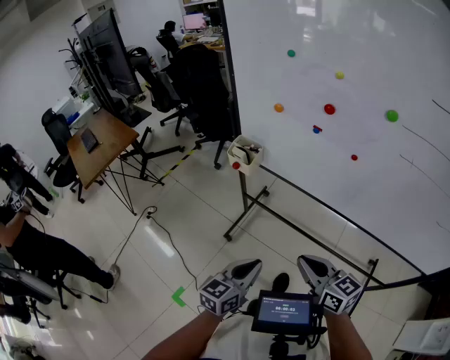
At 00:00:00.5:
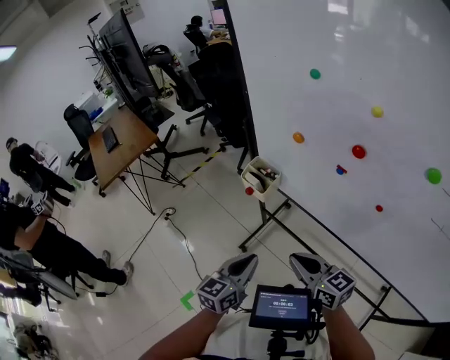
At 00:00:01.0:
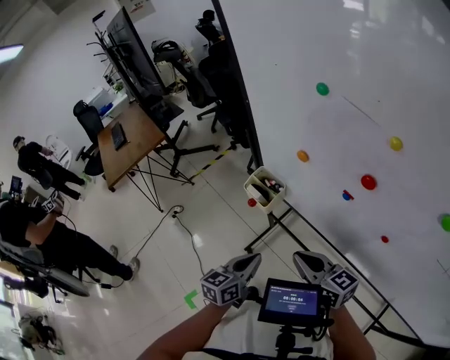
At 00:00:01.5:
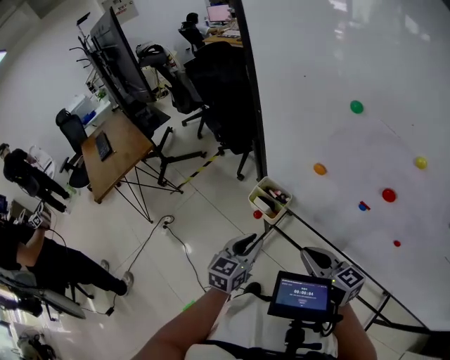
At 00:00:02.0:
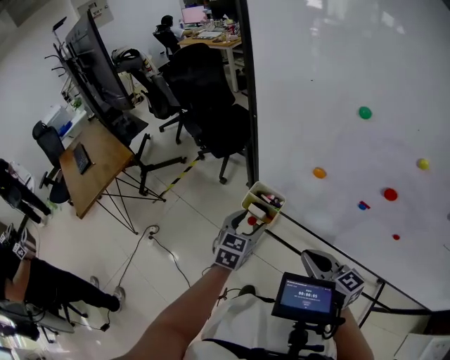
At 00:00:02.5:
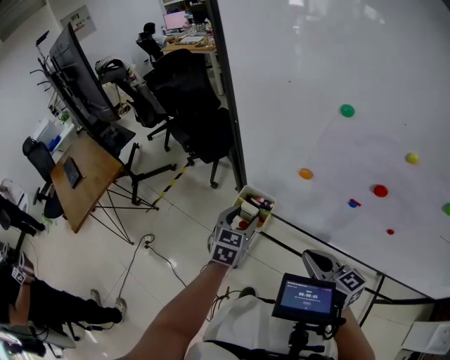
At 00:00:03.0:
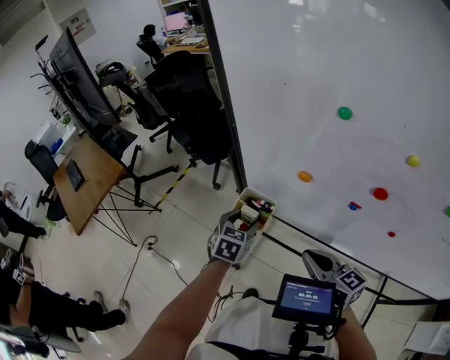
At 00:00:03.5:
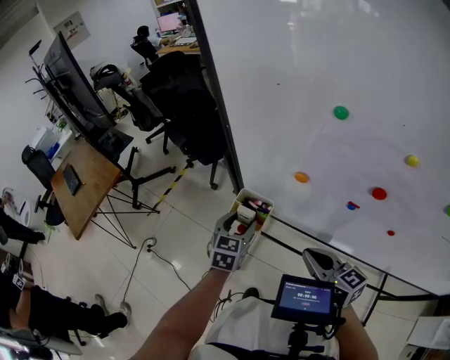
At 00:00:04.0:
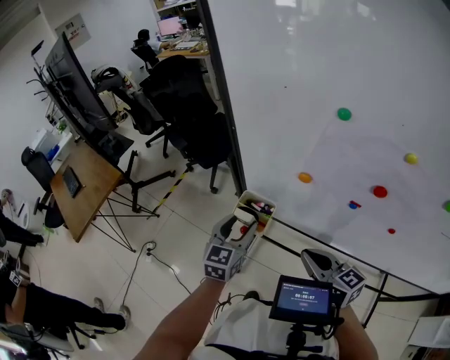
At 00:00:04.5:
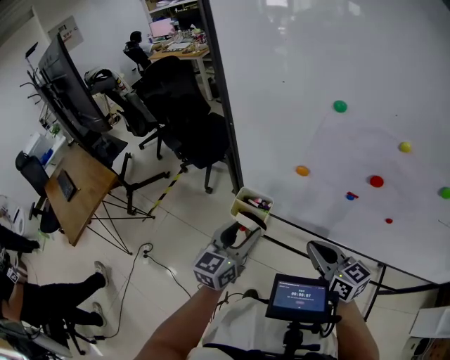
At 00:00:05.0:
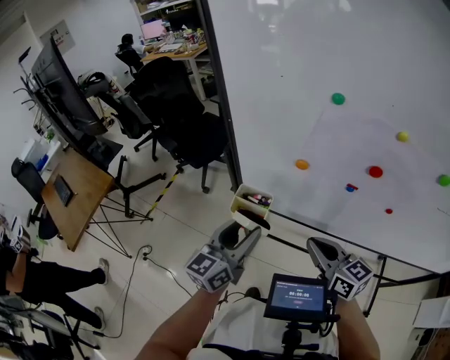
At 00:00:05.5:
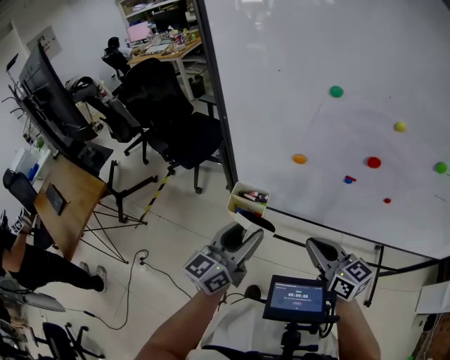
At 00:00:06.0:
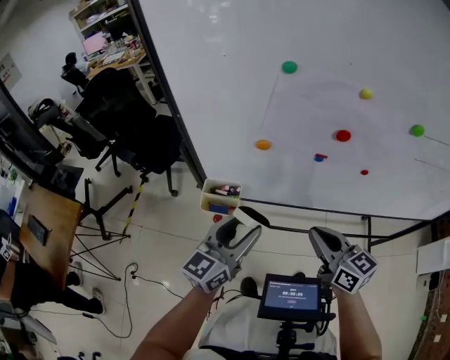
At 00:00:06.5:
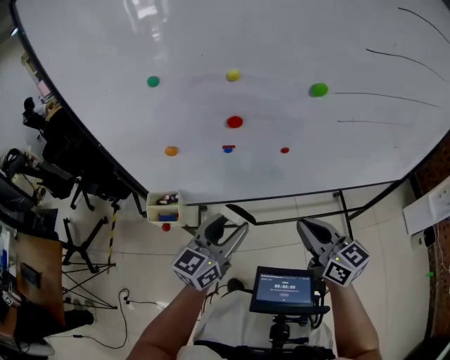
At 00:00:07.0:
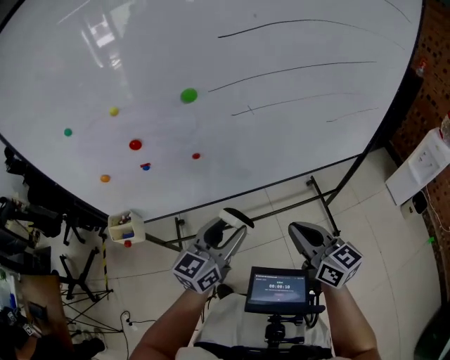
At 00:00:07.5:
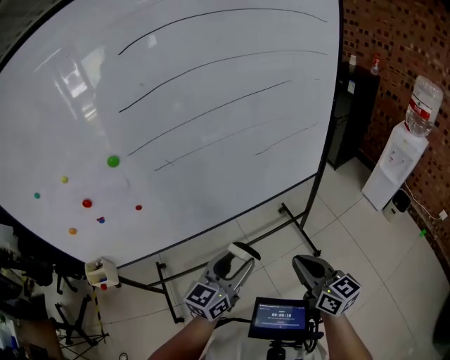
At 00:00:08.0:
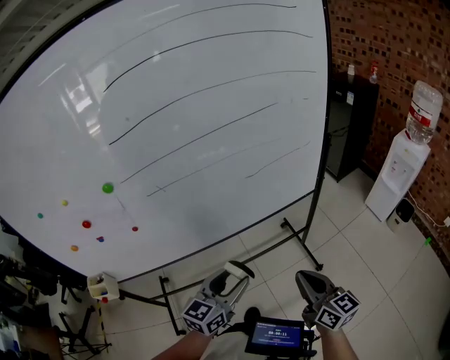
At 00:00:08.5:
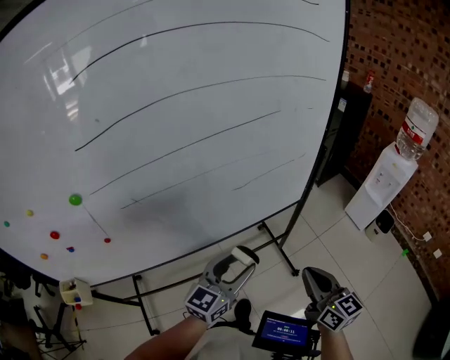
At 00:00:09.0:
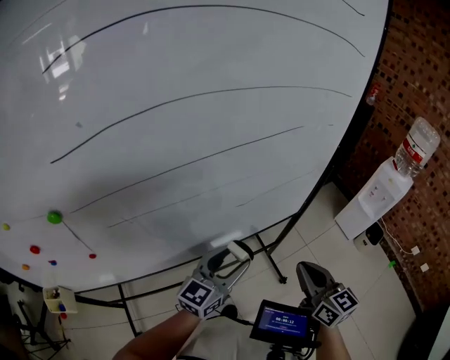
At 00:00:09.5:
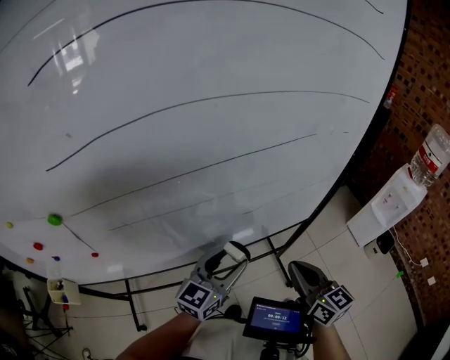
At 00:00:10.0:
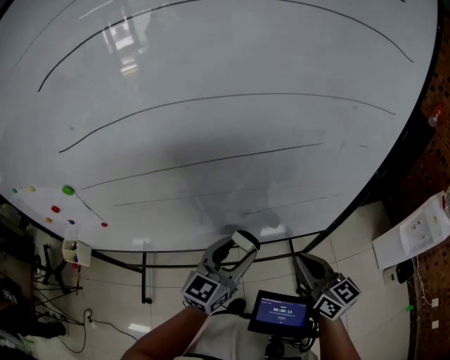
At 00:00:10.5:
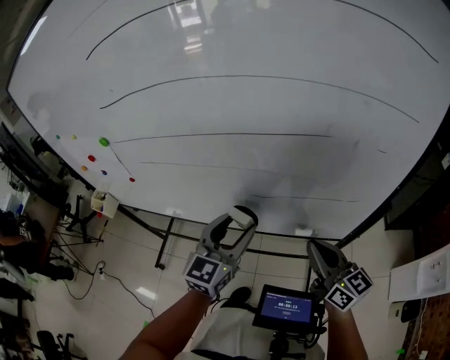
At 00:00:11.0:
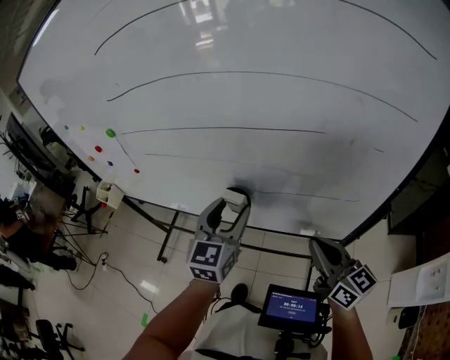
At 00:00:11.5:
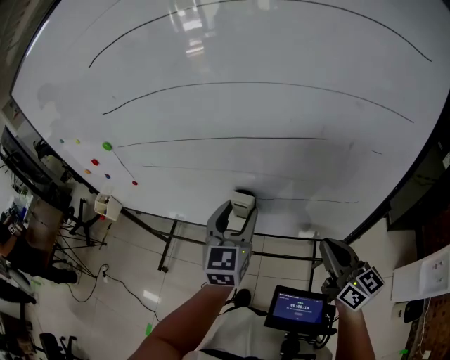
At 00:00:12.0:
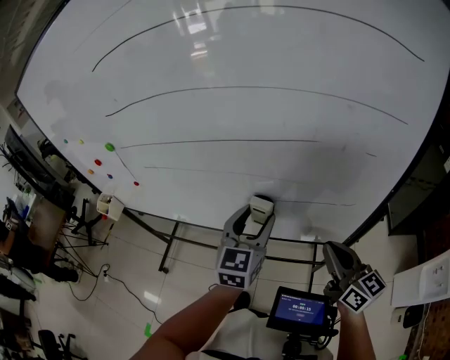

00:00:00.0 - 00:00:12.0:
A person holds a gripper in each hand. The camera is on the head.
00:00:00.0 - 00:00:02.0: The grippers both shift forward by about 40 cm. The left gripper changes its angle by about 30 degrees, and opens its fingers.
00:00:02.0 - 00:00:04.0: The left gripper goes some 5 cm upward.
00:00:04.0 - 00:00:06.0: The right gripper changes place by about 10 cm, and turns by some 20 degrees, while the left gripper changes place by some 15 cm, and swivels approximately 40 degrees.
00:00:06.0 - 00:00:08.0: Both grippers are carried approximately 60 cm. The right gripper turns by approximately 40 degrees; the left gripper turns by roughly 30 degrees.
00:00:08.0 - 00:00:10.0: Both grippers move forward, approximately 25 cm. The right gripper rotates about 20 degrees.
00:00:10.0 - 00:00:12.0: The left gripper moves approximately 5 cm, and rotates some 30 degrees. Meanwhile the right gripper shifts by some 10 cm.

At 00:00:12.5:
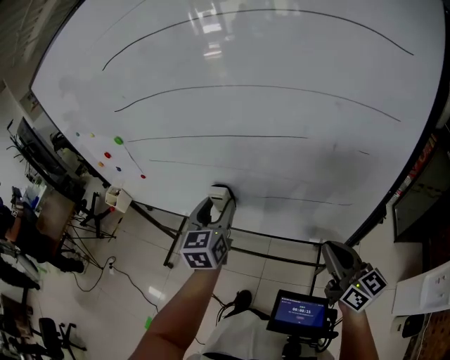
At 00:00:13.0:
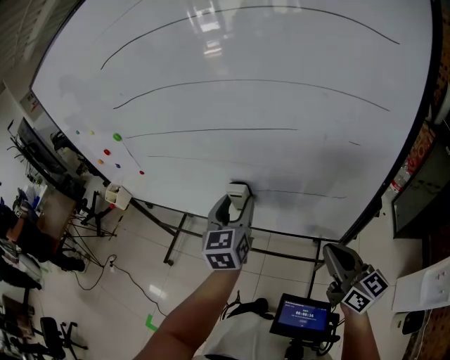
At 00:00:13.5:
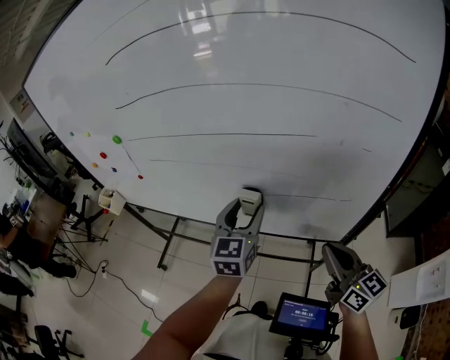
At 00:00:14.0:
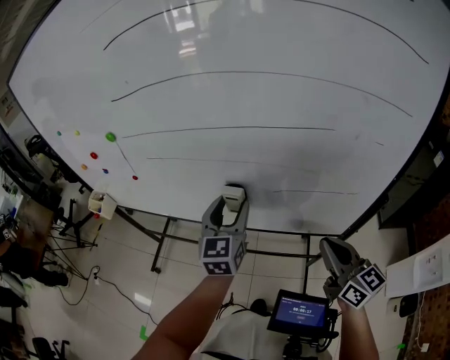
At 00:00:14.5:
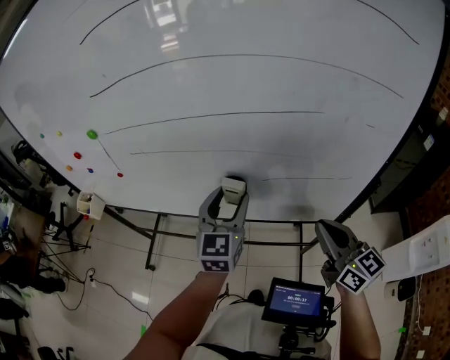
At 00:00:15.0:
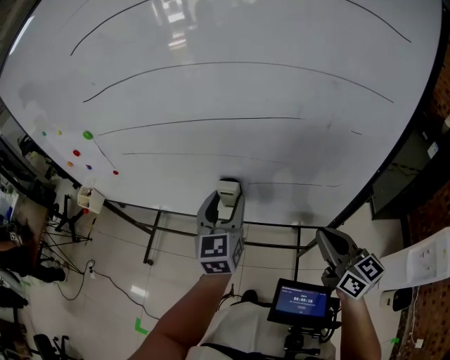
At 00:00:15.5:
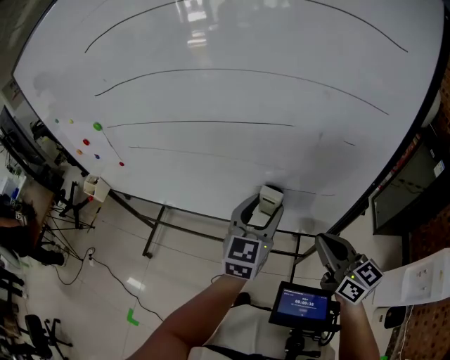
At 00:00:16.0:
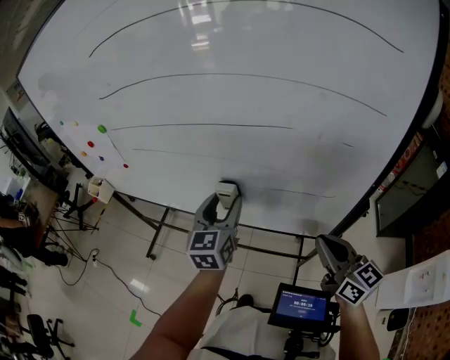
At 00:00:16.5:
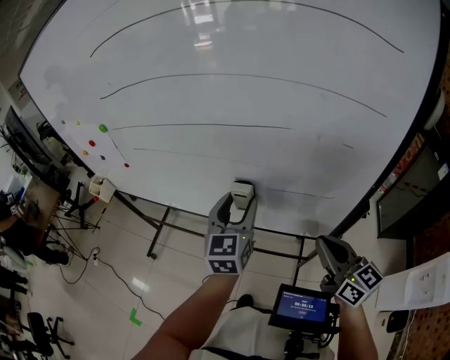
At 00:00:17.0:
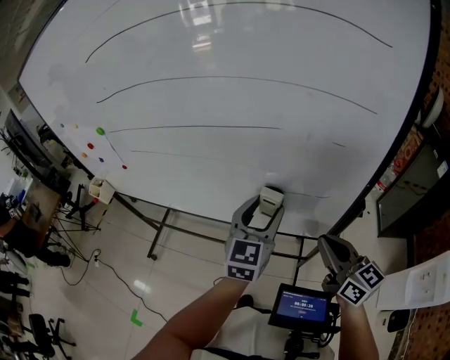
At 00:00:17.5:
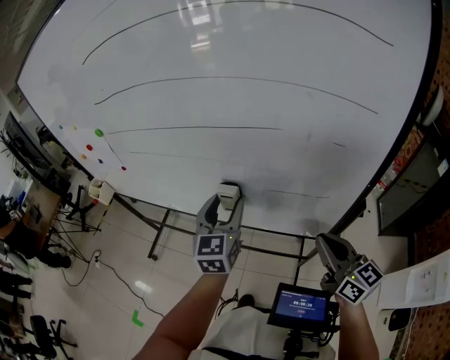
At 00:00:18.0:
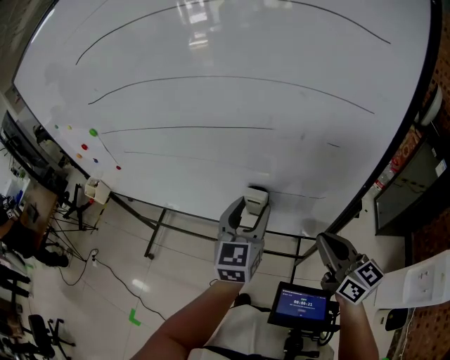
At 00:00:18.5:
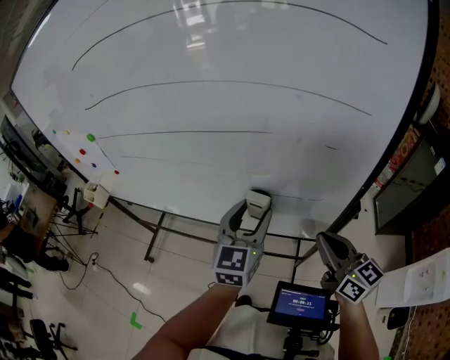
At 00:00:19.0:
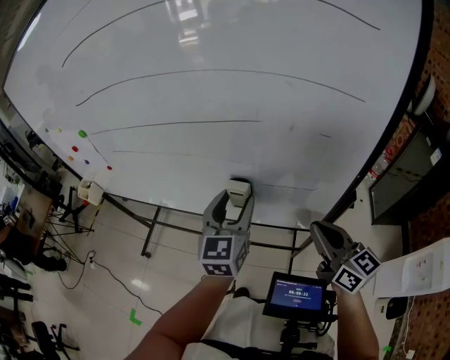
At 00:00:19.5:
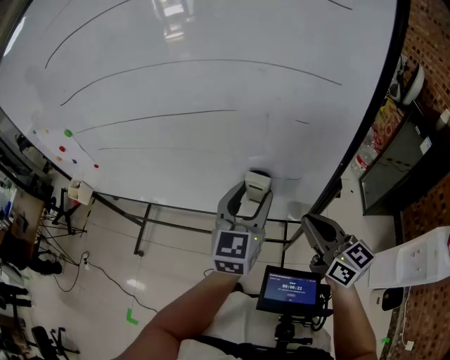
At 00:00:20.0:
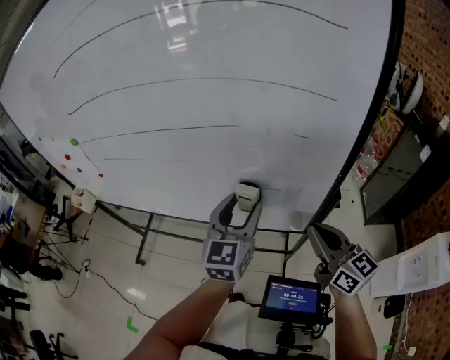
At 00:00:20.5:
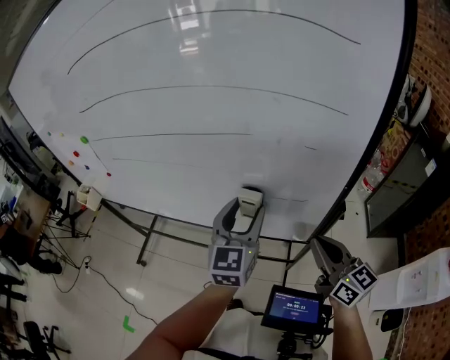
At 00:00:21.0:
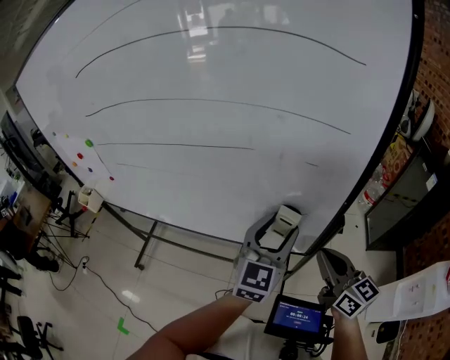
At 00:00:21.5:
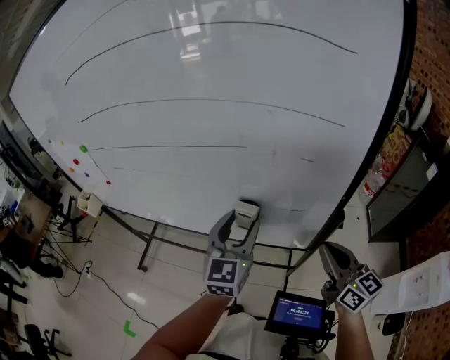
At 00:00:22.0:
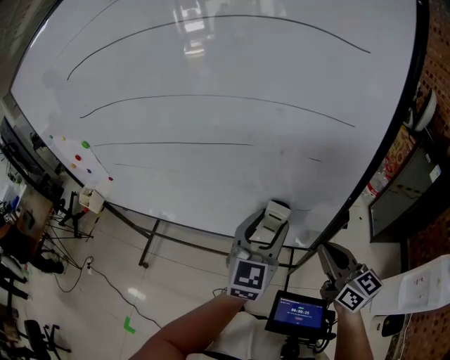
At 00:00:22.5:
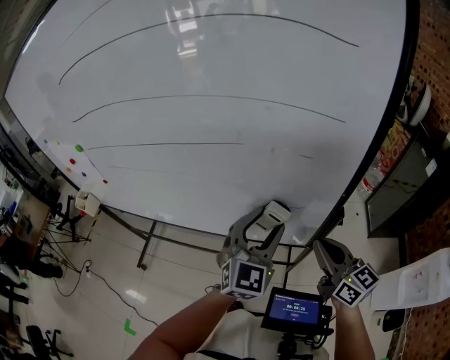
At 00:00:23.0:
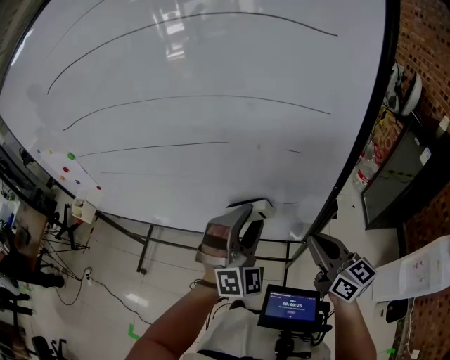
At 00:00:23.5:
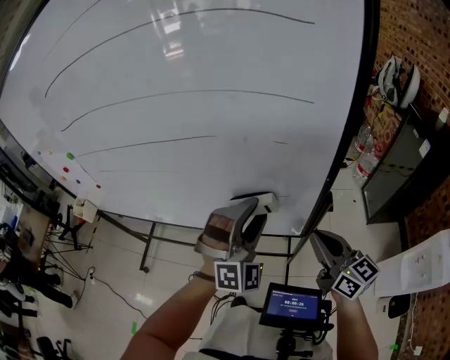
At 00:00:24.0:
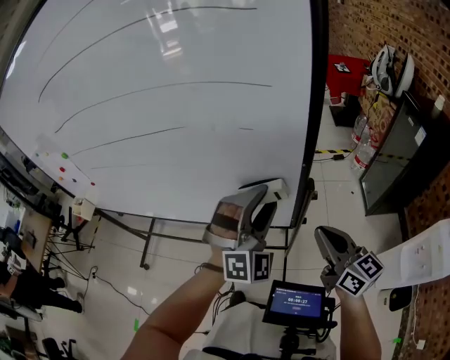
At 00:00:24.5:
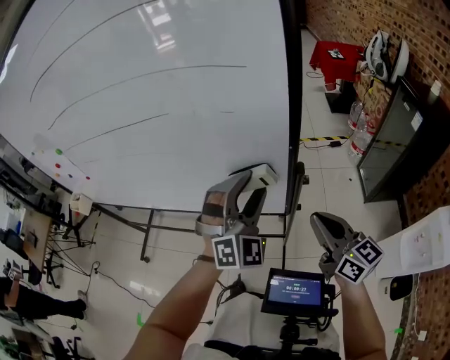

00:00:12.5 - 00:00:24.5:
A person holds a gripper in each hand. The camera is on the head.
00:00:12.5 - 00:00:14.5: The right gripper shifts some 5 cm to the left.
00:00:14.5 - 00:00:16.5: The left gripper swings left and right, some 15 cm each way, with 2 reversals, while the right gripper shifts some 10 cm to the right.
00:00:16.5 - 00:00:18.5: The left gripper goes left and right, about 10 cm each way, reversing 2 times.
00:00:20.5 - 00:00:22.5: The left gripper moves left and right over roughly 10 cm, changing direction 2 times, and swivels approximately 30 degrees.
00:00:22.5 - 00:00:24.5: The left gripper goes approximately 10 cm to the right, and rotates about 40 degrees. Meanwhile the right gripper goes about 10 cm to the right and backward.

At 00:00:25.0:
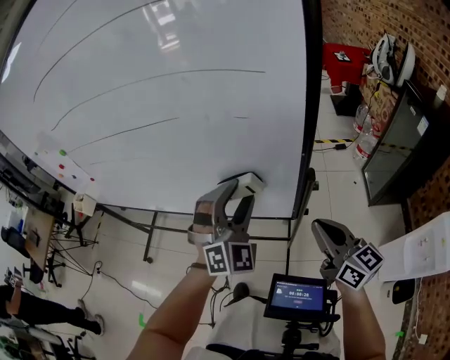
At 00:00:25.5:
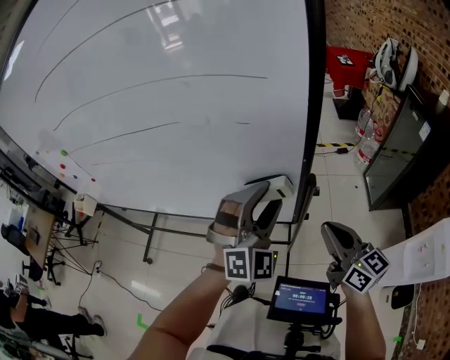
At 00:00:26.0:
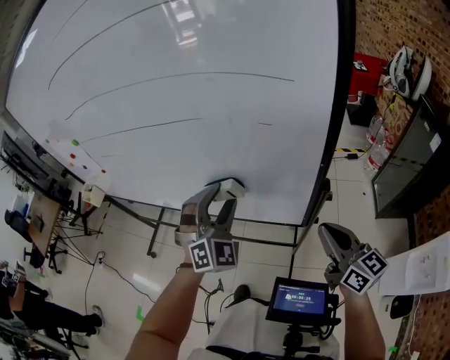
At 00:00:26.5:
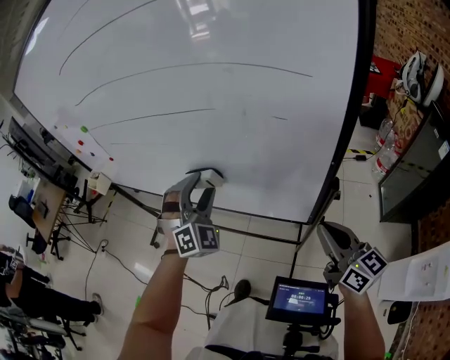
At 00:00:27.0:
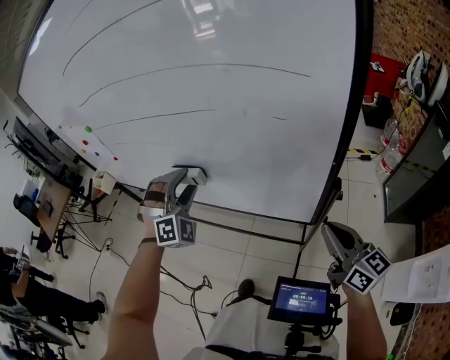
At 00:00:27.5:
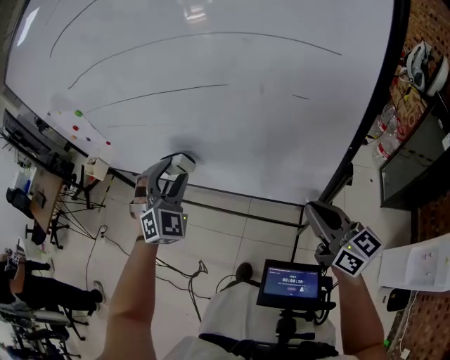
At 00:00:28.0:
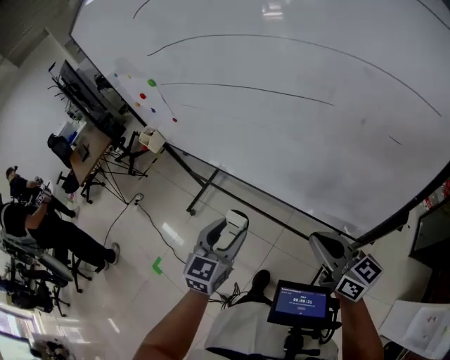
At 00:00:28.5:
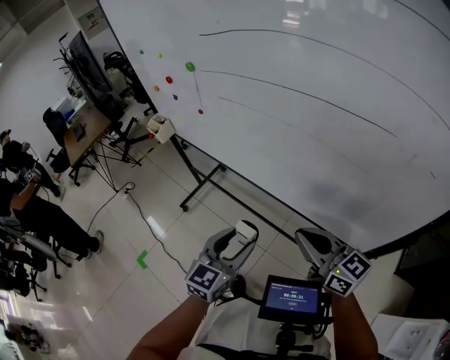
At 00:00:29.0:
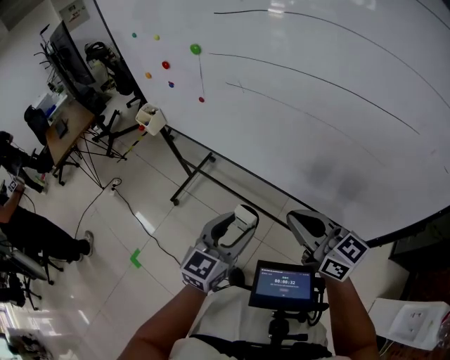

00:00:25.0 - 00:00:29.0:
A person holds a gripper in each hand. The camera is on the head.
00:00:25.0 - 00:00:27.0: The left gripper shifts roughly 25 cm to the left and forward, and changes its angle by some 30 degrees.
00:00:27.0 - 00:00:29.0: The right gripper is displaced to the left and forward by roughly 40 cm, and swivels about 30 degrees. Meanwhile the left gripper goes roughly 25 cm to the left, and rotates around the line of its fingers by approximately 90 degrees, counterclockwise from behind.
